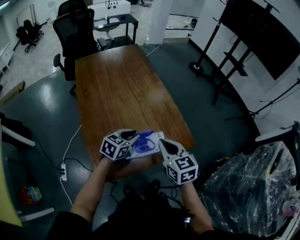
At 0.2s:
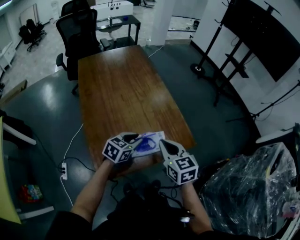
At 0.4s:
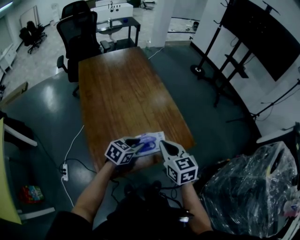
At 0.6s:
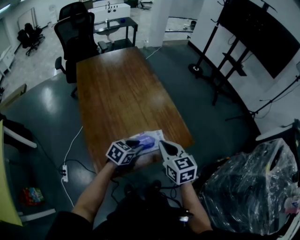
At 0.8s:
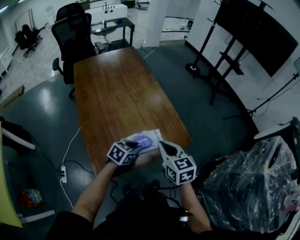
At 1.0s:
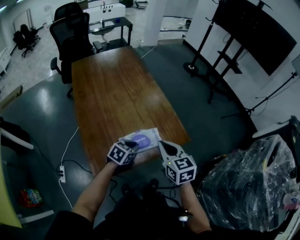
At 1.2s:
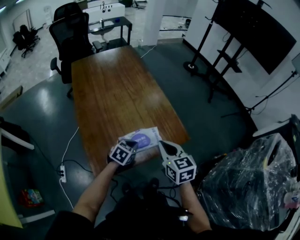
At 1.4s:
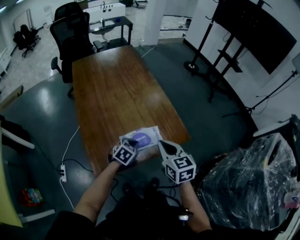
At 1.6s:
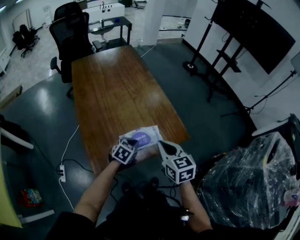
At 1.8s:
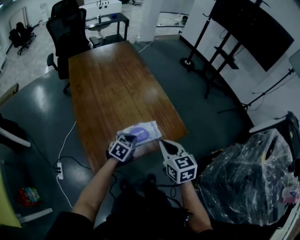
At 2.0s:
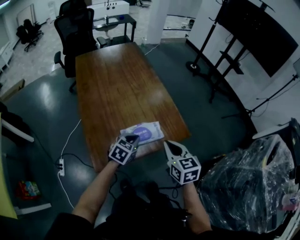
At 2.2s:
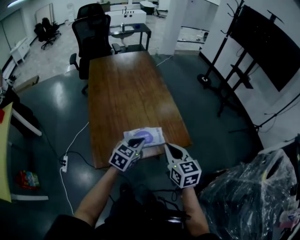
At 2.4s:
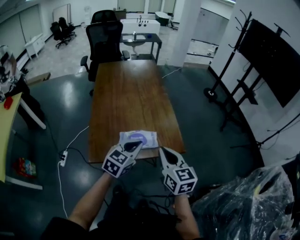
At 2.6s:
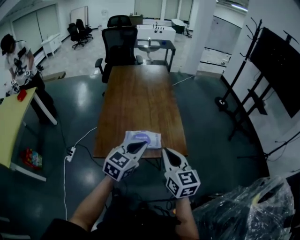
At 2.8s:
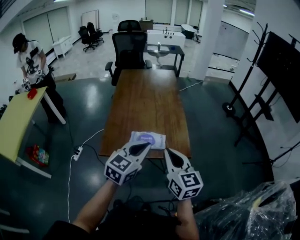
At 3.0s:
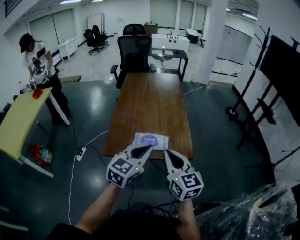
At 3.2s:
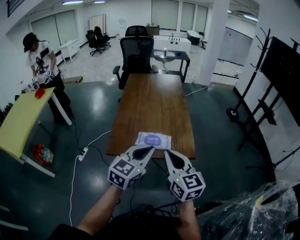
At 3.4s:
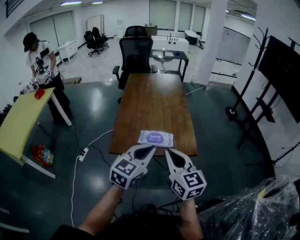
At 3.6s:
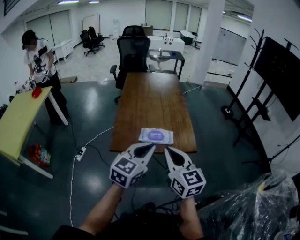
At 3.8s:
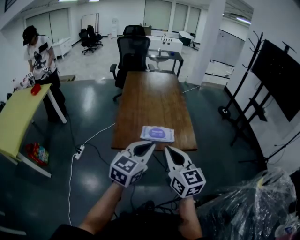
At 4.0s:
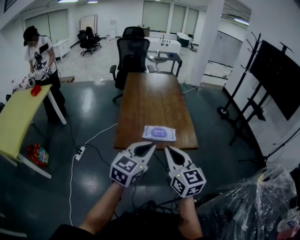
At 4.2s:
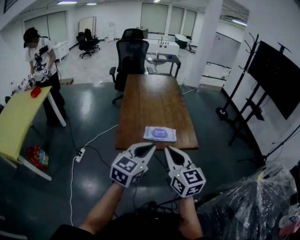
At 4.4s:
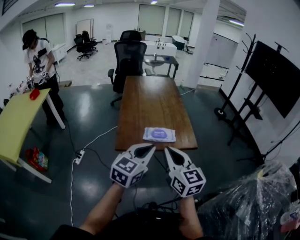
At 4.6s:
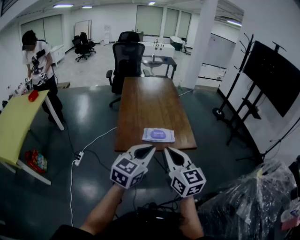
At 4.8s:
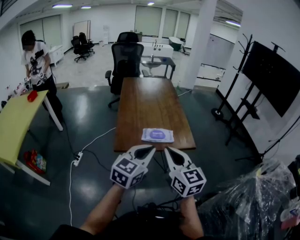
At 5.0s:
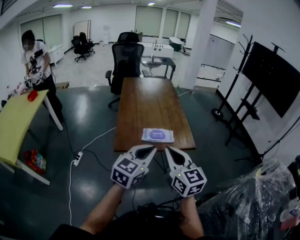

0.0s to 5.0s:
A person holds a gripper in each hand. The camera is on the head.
0.0s to 1.6s: The left gripper is displaced downward by some 10 cm.
1.6s to 3.4s: The right gripper ends up roughly 20 cm from where it was, and swivels about 30 degrees, while the left gripper travels upward by about 30 cm, and tips its fingers upward by some 30 degrees.
3.4s to 5.0s: The grippers both shift backward and to the left by some 10 cm.

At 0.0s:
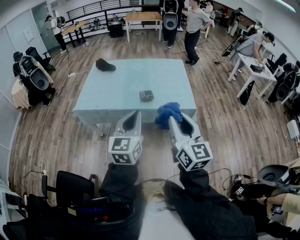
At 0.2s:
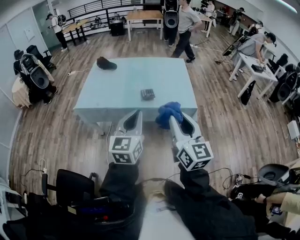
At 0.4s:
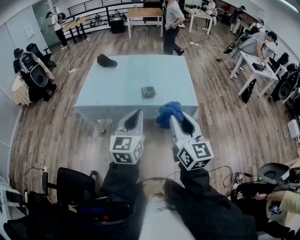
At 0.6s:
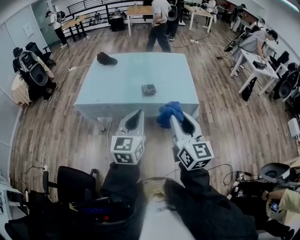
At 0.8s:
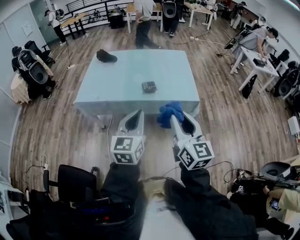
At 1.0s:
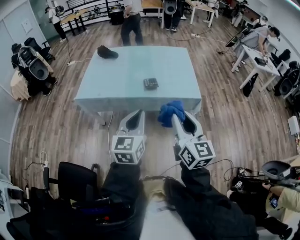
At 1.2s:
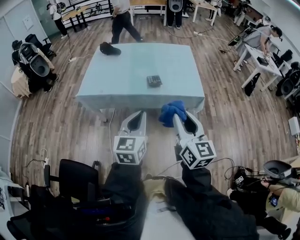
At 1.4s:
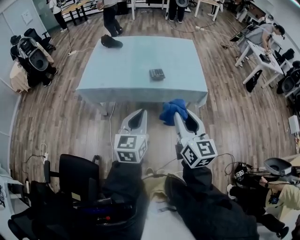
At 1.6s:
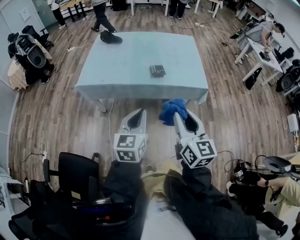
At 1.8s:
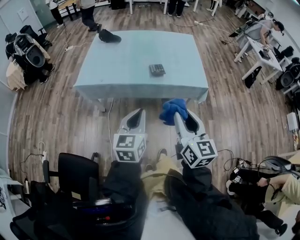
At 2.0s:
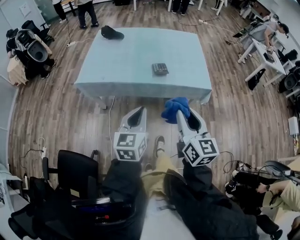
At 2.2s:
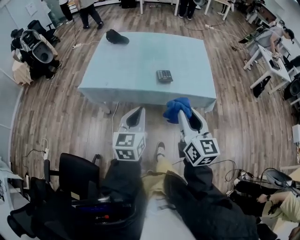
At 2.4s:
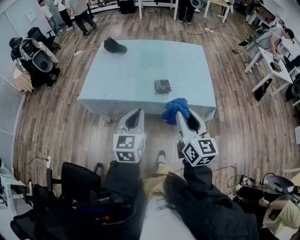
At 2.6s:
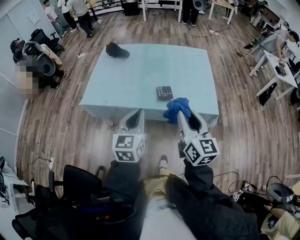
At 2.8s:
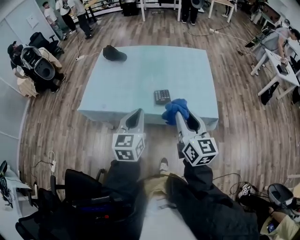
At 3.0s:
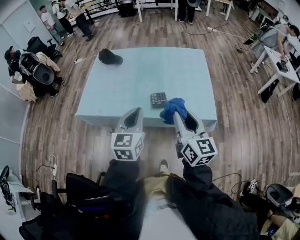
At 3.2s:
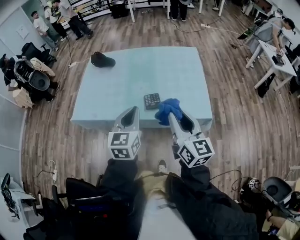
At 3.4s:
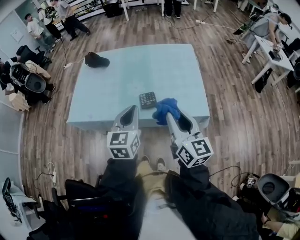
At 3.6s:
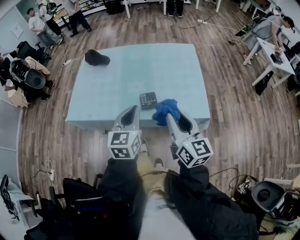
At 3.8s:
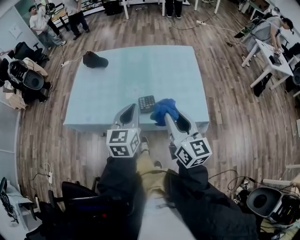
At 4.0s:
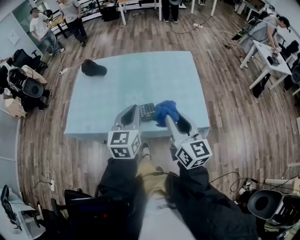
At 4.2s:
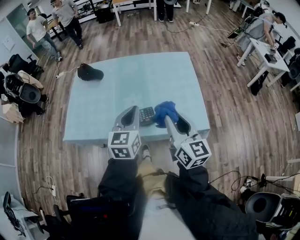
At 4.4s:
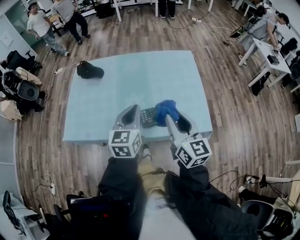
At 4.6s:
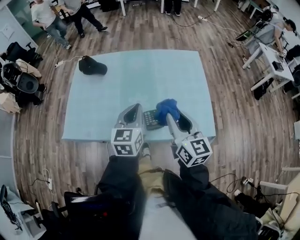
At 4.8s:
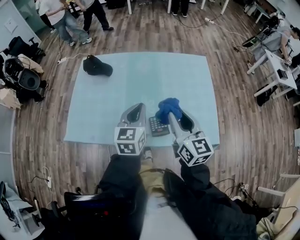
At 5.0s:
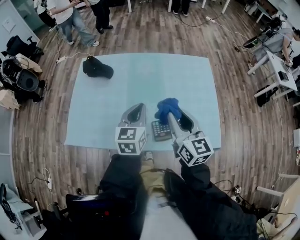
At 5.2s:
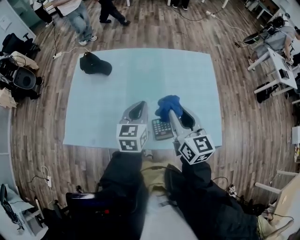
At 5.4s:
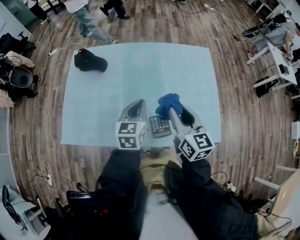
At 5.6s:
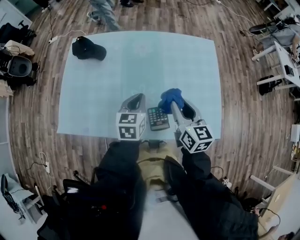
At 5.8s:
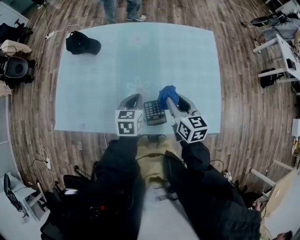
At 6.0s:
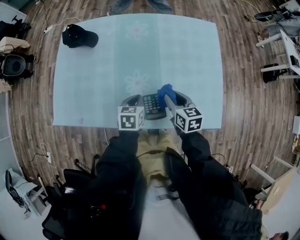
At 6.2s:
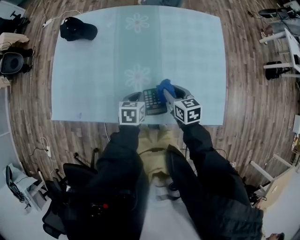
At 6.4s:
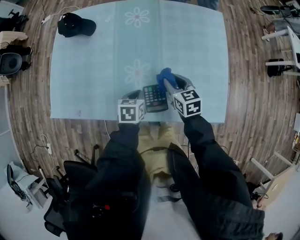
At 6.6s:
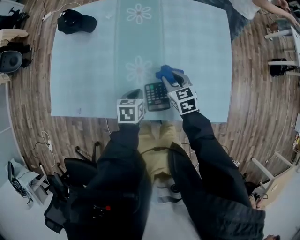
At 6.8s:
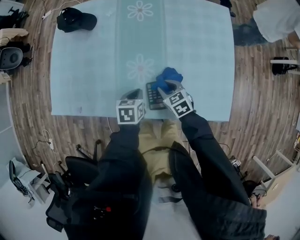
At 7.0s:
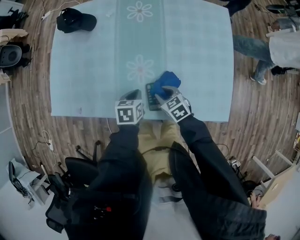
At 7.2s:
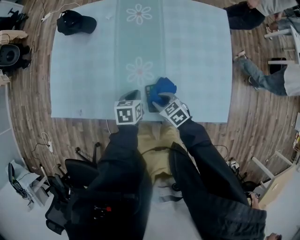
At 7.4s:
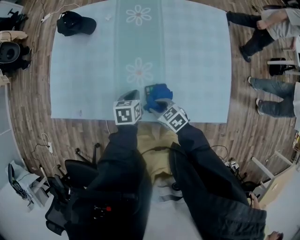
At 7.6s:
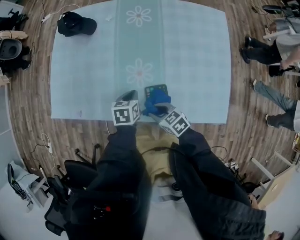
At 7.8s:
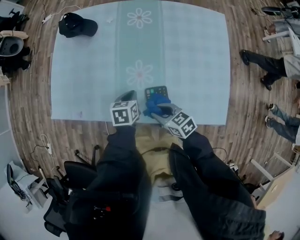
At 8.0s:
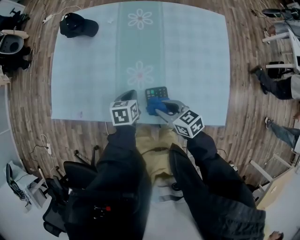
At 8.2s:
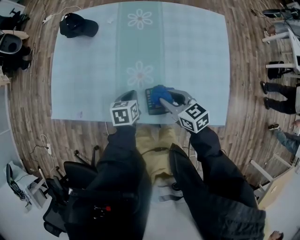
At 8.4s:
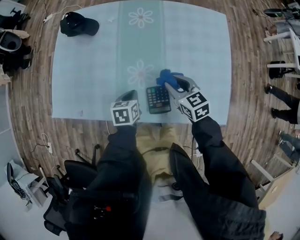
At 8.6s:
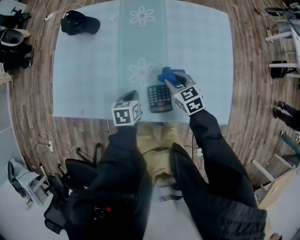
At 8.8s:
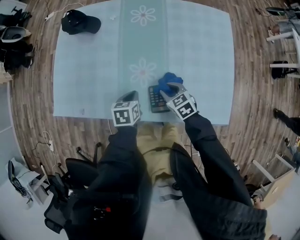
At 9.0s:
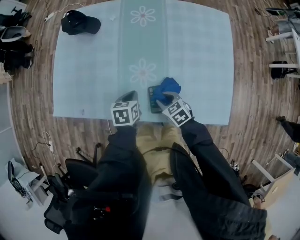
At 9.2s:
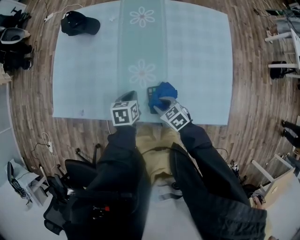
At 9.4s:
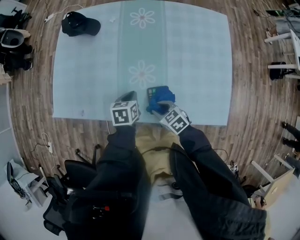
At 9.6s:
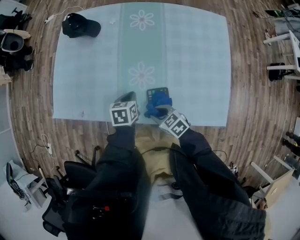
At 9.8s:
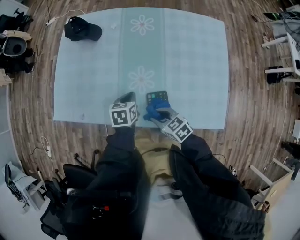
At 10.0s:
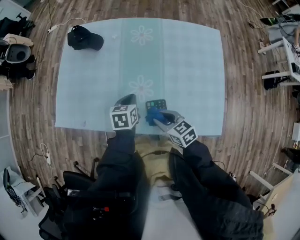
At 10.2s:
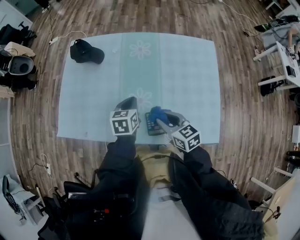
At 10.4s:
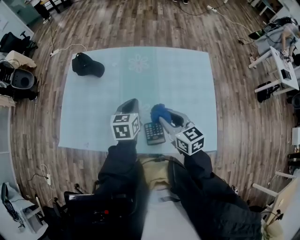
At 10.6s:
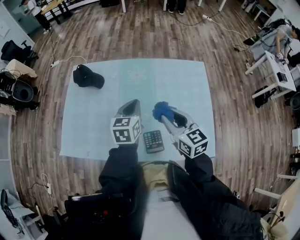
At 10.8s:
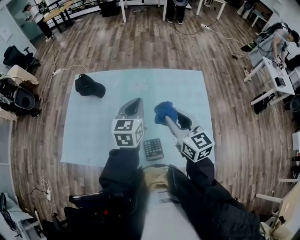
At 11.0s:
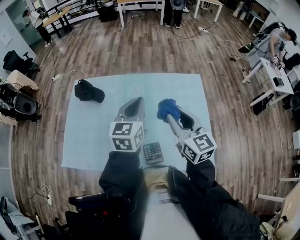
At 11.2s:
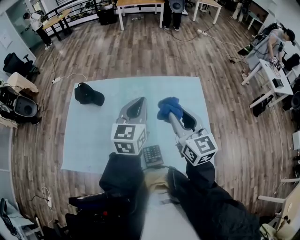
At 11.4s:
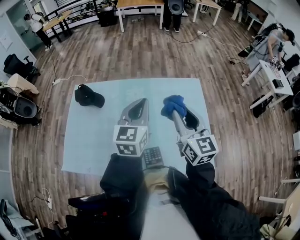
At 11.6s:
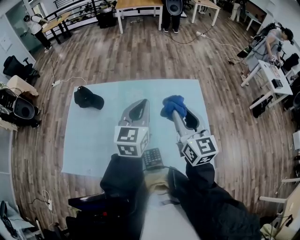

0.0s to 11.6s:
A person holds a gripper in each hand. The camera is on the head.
0.0s to 1.4s: The grippers both shift downward and to the left by some 10 cm.
1.4s to 2.8s: The grippers both shift forward by some 25 cm.
2.8s to 4.4s: Both grippers move forward, approximately 20 cm.
4.4s to 5.8s: The right gripper shifts roughly 25 cm forward and downward, and swivels some 30 degrees. The left gripper travels downward and forward by approximately 25 cm, and swivels roughly 30 degrees.
5.8s to 7.2s: The right gripper shifts some 20 cm downward and to the left, and swivels some 40 degrees; the left gripper is displaced downward by about 10 cm.
8.8s to 10.2s: The left gripper shifts about 15 cm upward and forward, while the right gripper heads upward, covering some 15 cm, and swivels some 20 degrees.
10.2s to 11.6s: The right gripper shifts about 30 cm upward, to the right and forward, and turns by approximately 40 degrees. The left gripper moves upward, about 25 cm, and angles its fingers upward, by about 30 degrees.

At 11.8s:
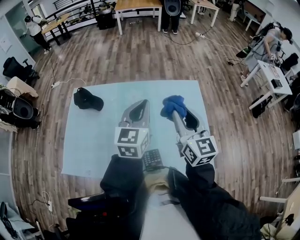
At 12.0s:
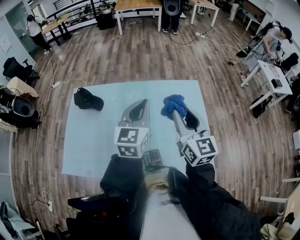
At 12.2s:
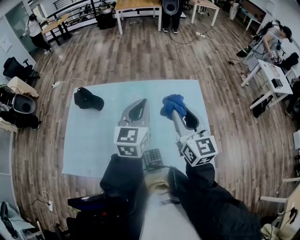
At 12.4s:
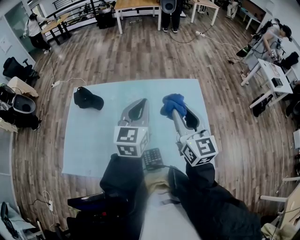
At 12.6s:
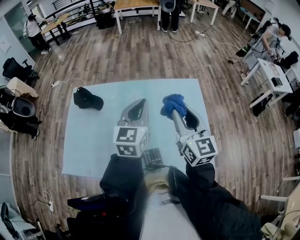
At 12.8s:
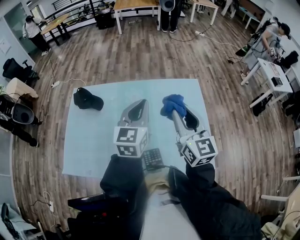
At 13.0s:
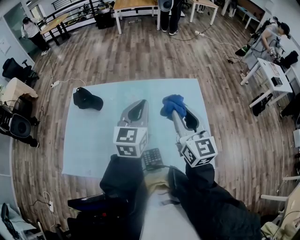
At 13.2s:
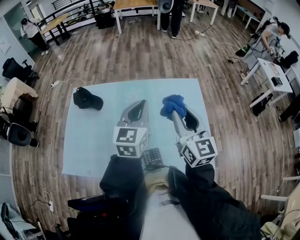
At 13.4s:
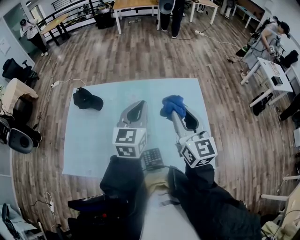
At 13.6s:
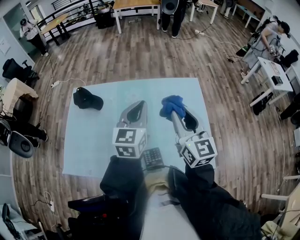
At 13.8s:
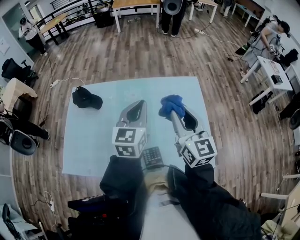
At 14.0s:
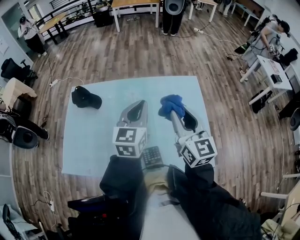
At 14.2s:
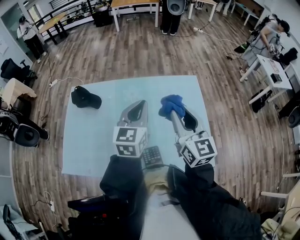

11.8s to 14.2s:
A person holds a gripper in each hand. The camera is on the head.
11.8s to 13.0s: Both grippers stay about where they are.
13.0s to 14.2s: Neither gripper changes place.

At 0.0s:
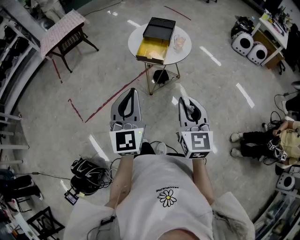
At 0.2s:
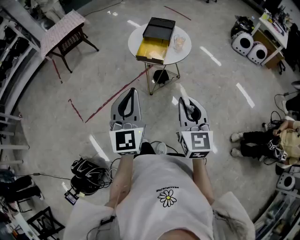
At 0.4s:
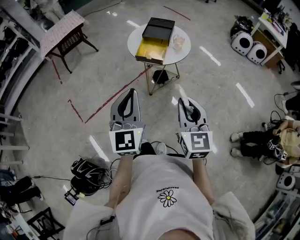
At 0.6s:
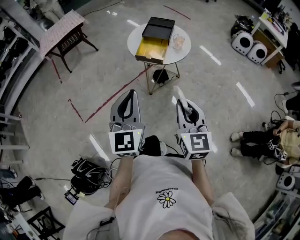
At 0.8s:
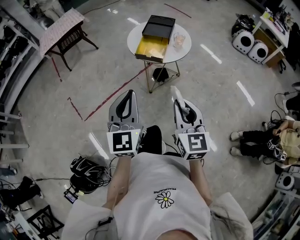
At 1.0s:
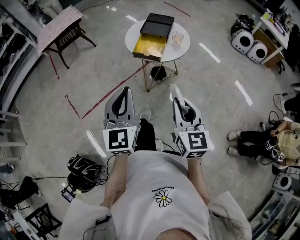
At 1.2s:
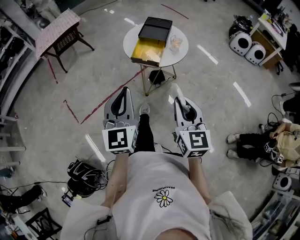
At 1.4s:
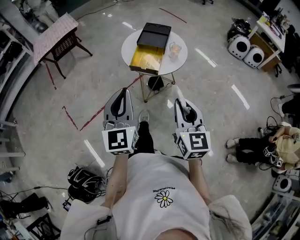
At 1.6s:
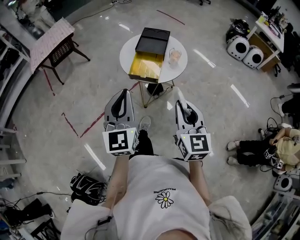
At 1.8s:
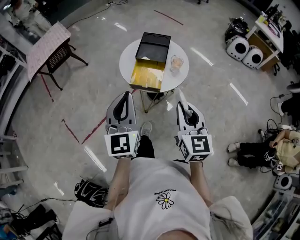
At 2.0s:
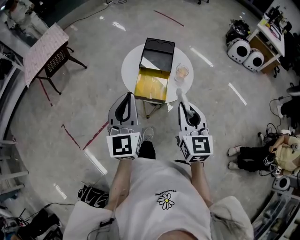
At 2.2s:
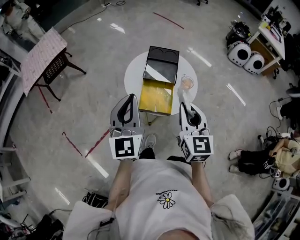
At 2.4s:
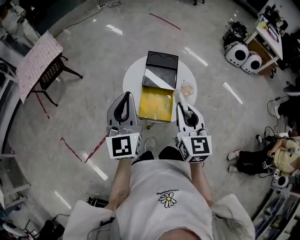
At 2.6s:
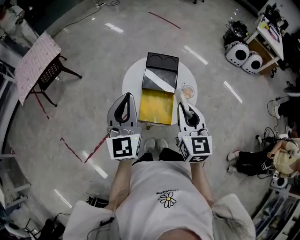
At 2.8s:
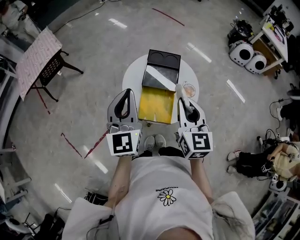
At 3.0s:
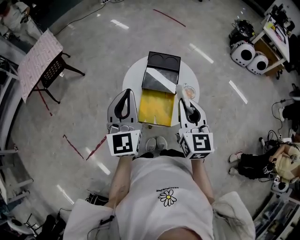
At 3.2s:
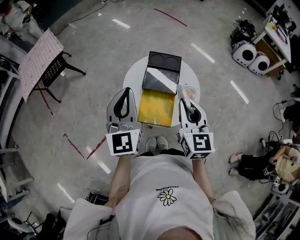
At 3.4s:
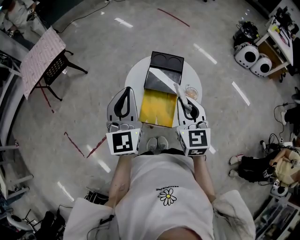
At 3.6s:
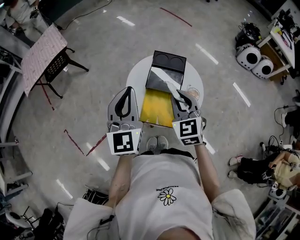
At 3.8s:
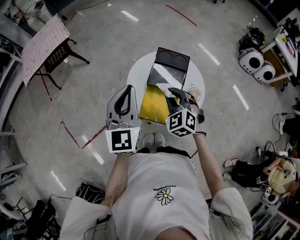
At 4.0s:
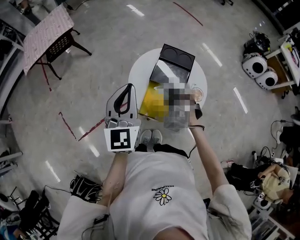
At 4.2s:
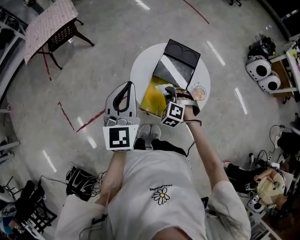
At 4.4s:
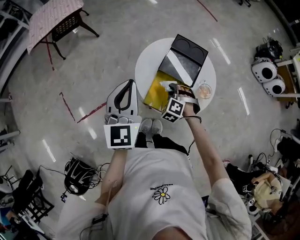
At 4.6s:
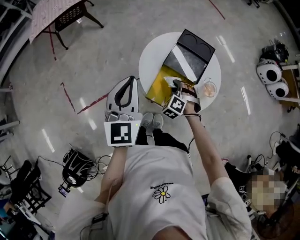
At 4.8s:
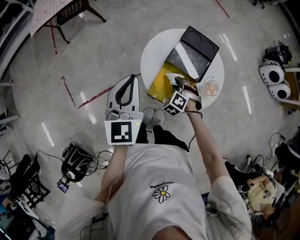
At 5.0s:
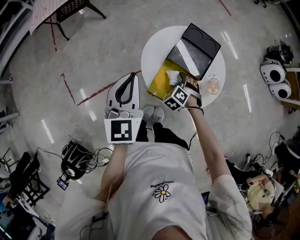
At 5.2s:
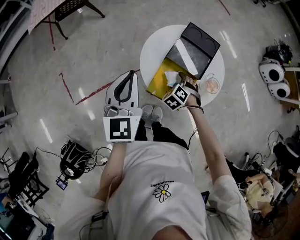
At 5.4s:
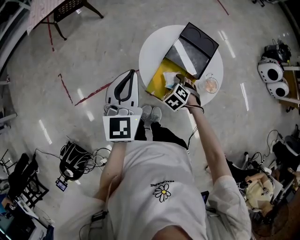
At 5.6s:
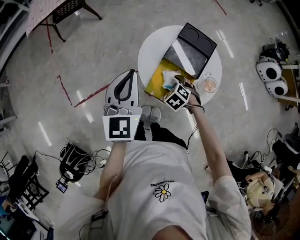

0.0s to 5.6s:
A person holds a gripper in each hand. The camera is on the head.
0.0s to 1.4s: The two grippers go roughly 10 cm forward.
1.4s to 2.8s: The two grippers go some 35 cm forward.
2.8s to 4.2s: The right gripper is displaced downward by about 25 cm, and rotates around the line of its fingers by some 70 degrees, counterclockwise from behind.
4.2s to 5.6s: The left gripper changes place by about 5 cm; the right gripper travels downward by some 5 cm, turns by roughly 30 degrees, and opens.
